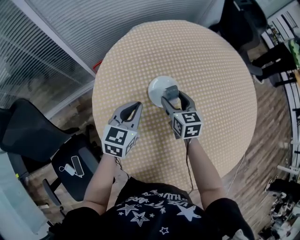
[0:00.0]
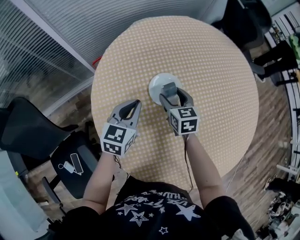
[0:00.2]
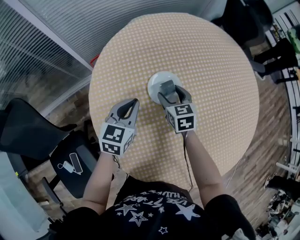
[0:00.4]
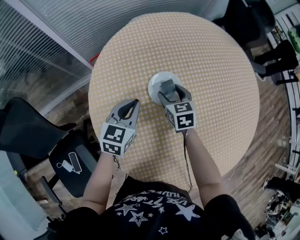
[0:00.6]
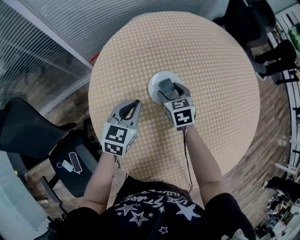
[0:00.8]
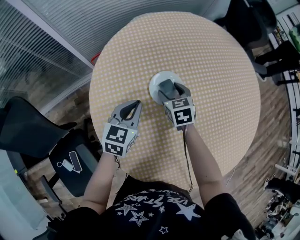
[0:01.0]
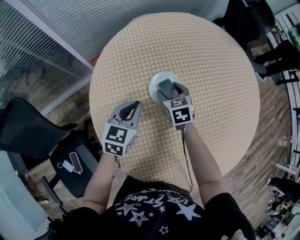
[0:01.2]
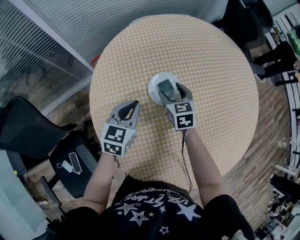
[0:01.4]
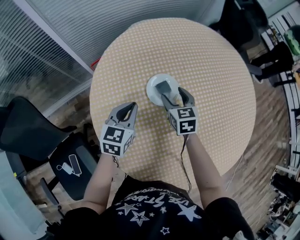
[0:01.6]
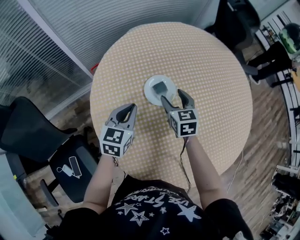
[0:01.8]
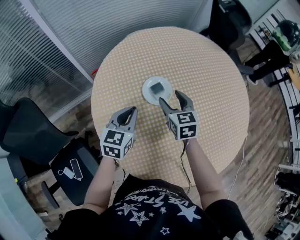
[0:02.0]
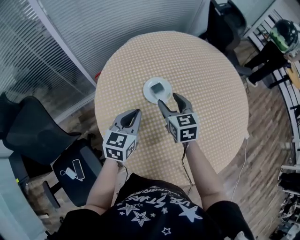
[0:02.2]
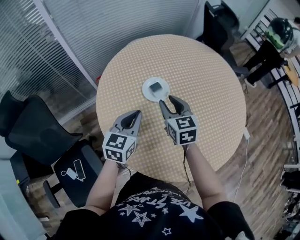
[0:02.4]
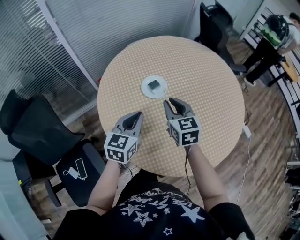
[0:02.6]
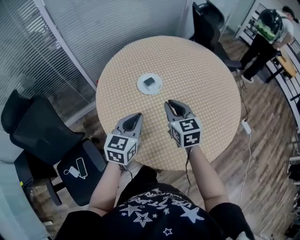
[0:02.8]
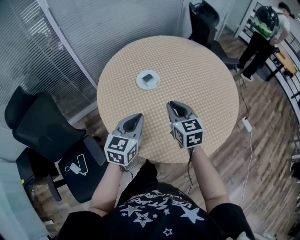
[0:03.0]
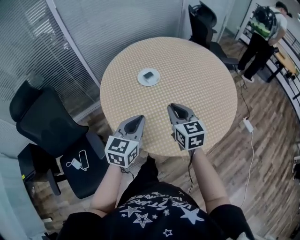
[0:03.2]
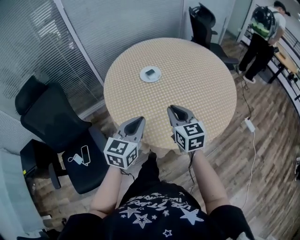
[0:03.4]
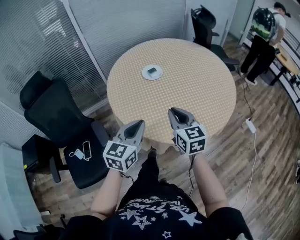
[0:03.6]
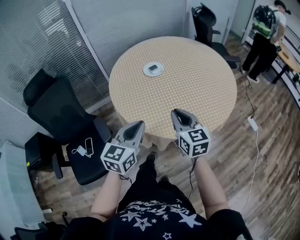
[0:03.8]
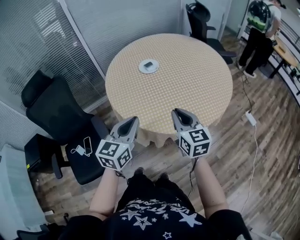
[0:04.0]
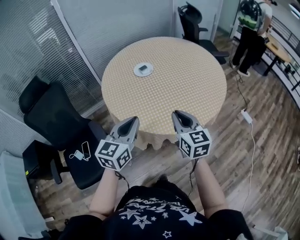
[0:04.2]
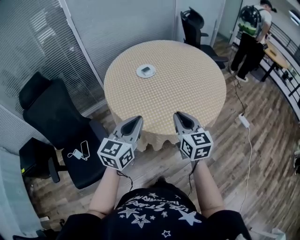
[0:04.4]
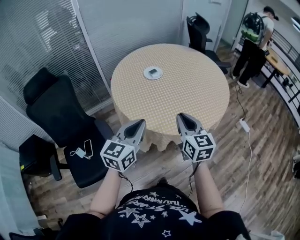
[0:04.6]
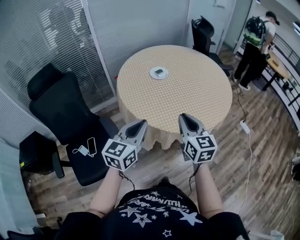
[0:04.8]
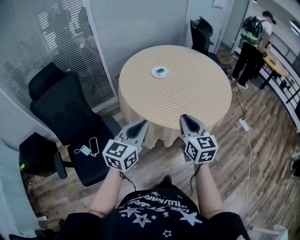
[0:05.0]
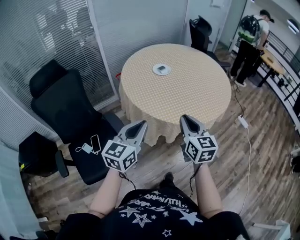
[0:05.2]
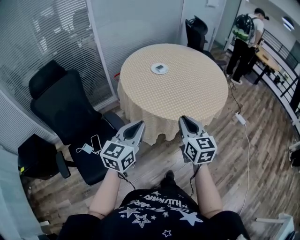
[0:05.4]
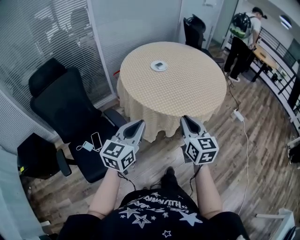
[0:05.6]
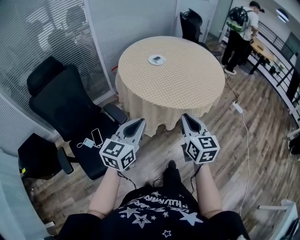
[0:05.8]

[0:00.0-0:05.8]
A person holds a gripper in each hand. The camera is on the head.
0:01.4 to 0:02.8: The two grippers go about 25 cm backward and upward. The right gripper closes up.
0:02.8 to 0:04.4: Both grippers travel together backward, roughly 25 cm.
0:04.4 to 0:05.8: The two grippers go some 25 cm backward and to the left.

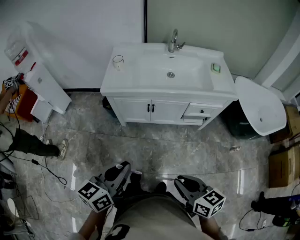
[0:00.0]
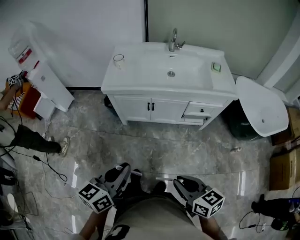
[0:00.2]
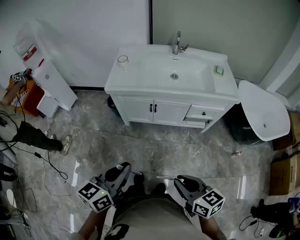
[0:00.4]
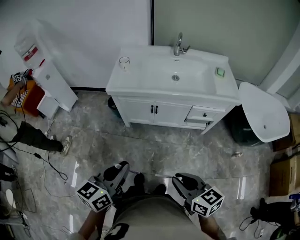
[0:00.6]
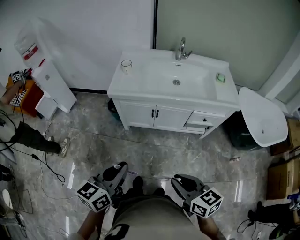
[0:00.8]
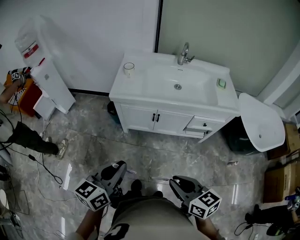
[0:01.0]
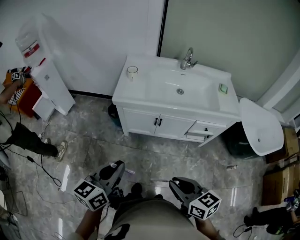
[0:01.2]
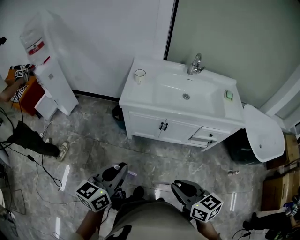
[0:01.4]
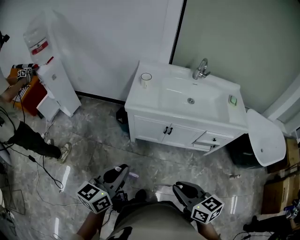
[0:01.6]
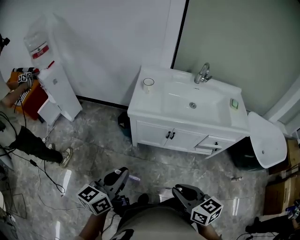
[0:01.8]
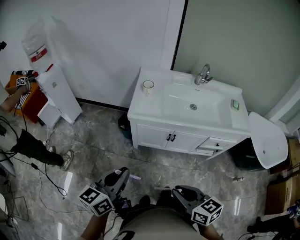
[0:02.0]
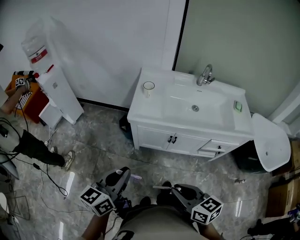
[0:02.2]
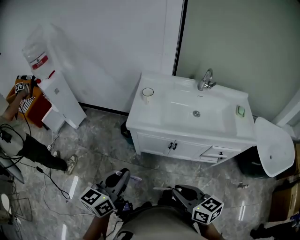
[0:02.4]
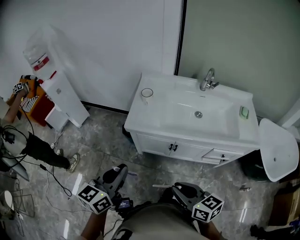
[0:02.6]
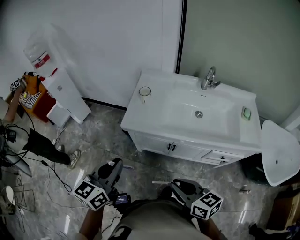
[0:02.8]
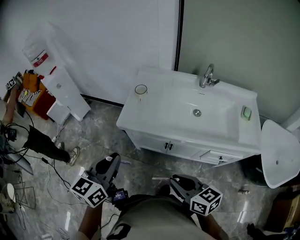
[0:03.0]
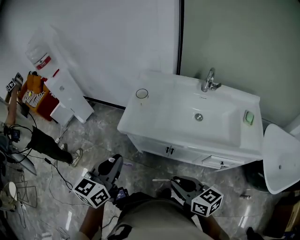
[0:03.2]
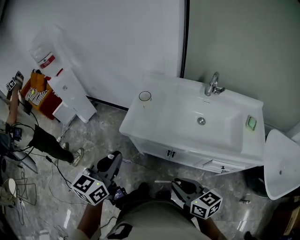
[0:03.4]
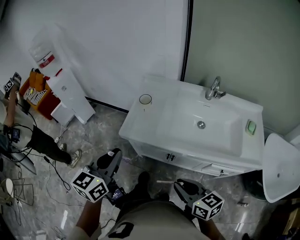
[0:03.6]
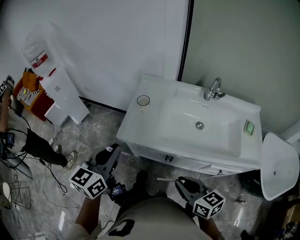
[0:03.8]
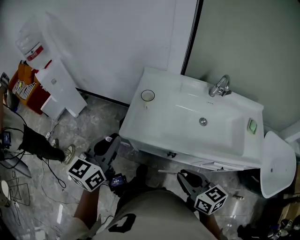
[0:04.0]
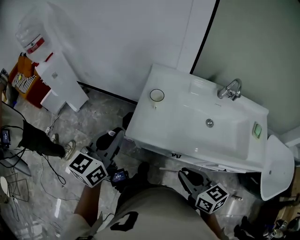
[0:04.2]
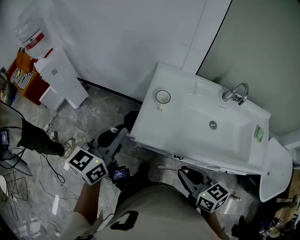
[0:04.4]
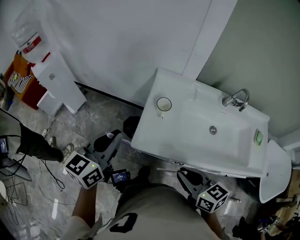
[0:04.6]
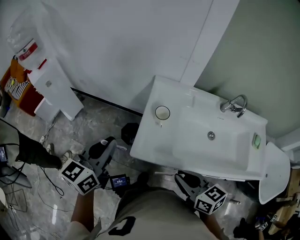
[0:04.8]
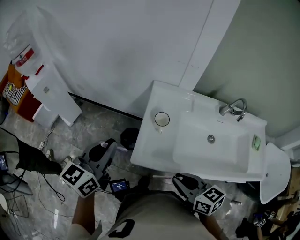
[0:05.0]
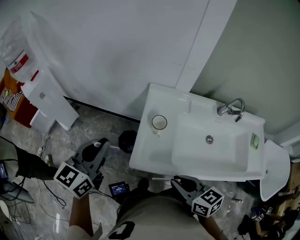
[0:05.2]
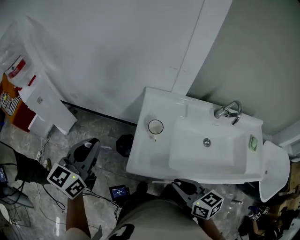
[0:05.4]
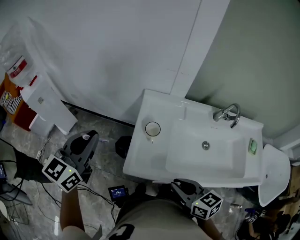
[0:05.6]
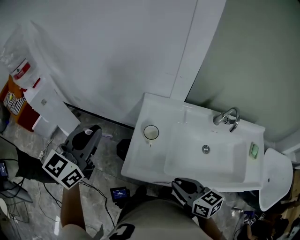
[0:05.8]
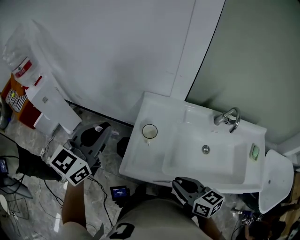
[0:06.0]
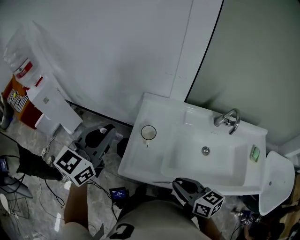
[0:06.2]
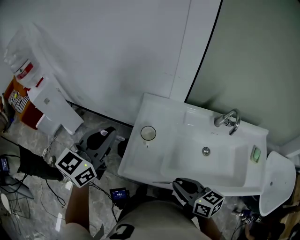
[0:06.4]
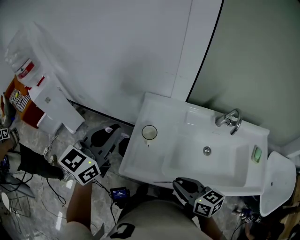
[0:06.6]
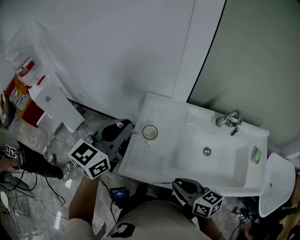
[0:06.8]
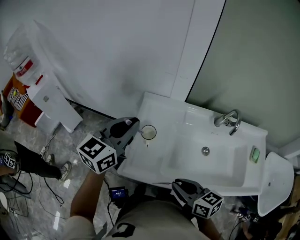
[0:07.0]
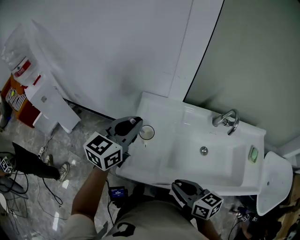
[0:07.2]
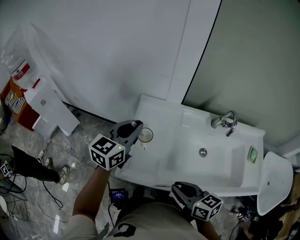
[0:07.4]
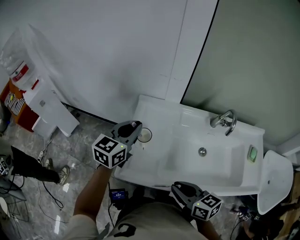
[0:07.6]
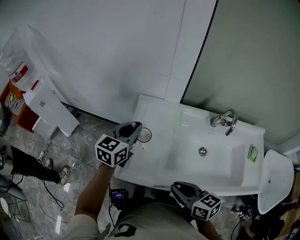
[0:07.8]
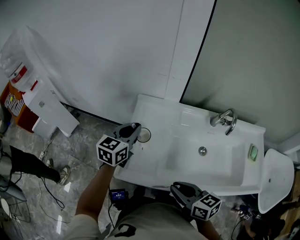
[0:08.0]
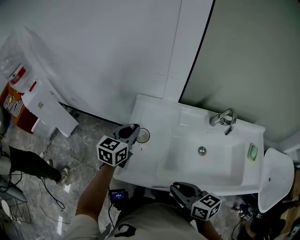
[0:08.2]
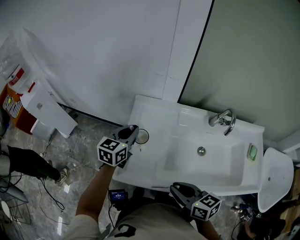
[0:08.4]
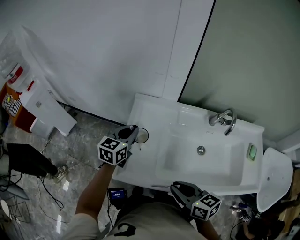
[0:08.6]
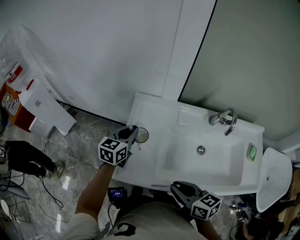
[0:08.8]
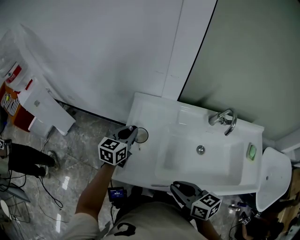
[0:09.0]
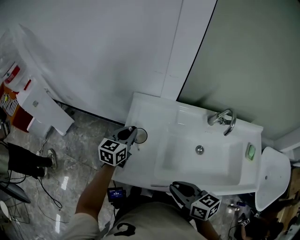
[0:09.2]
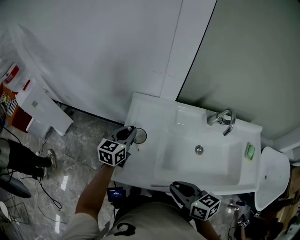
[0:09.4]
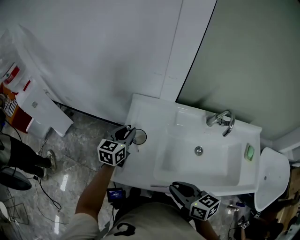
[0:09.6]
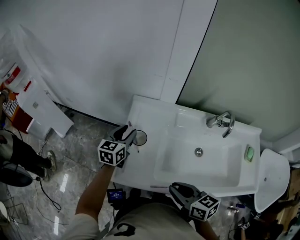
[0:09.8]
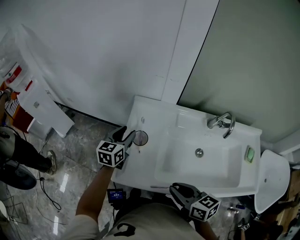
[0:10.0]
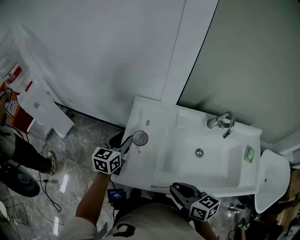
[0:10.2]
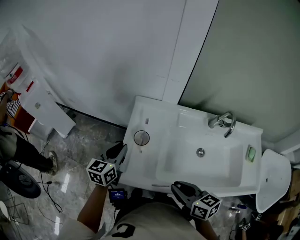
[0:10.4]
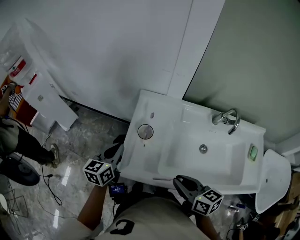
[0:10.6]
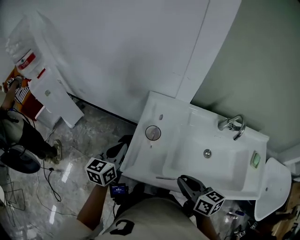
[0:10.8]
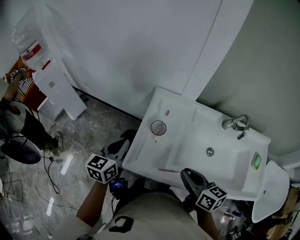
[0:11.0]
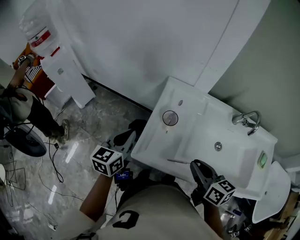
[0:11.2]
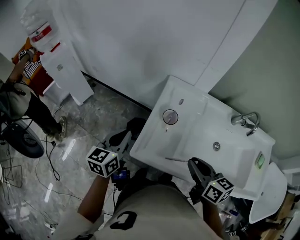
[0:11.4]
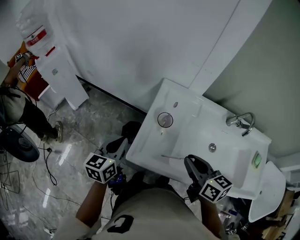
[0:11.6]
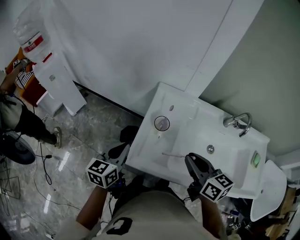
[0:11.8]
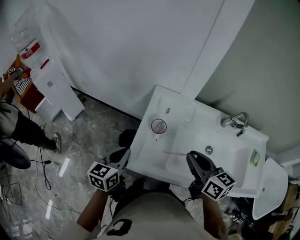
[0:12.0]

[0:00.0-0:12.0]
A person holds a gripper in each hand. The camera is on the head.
0:00.0 to 0:01.6: The grippers both shift to the left and forward by approximately 15 cm.
0:01.6 to 0:03.0: The grippers both shift forward and to the right by about 20 cm.
0:03.0 to 0:04.4: The grippers both shift forward by roughly 20 cm.
0:04.4 to 0:06.0: The right gripper heads forward, covering about 10 cm; the left gripper travels forward and upward by approximately 15 cm.
0:06.0 to 0:07.6: The left gripper goes roughly 15 cm to the right, downward and forward.
0:07.6 to 0:09.0: The left gripper travels downward by about 10 cm.
0:09.0 to 0:10.4: The left gripper goes roughly 10 cm backward and to the left, and opens and closes again.
0:10.4 to 0:12.0: The left gripper goes approximately 10 cm backward and to the left. Meanwhile the right gripper travels forward and upward by approximately 10 cm.

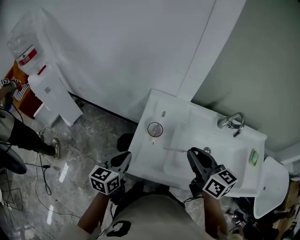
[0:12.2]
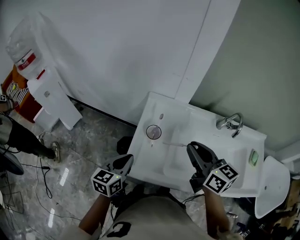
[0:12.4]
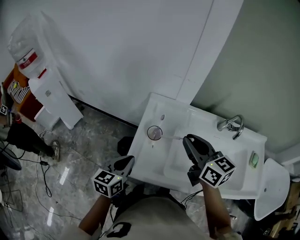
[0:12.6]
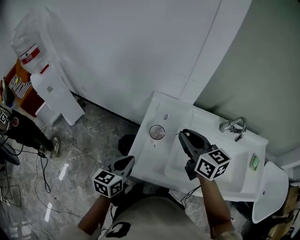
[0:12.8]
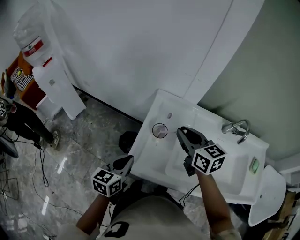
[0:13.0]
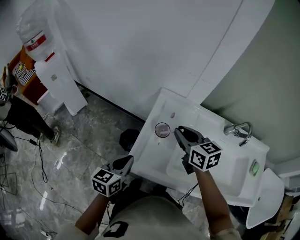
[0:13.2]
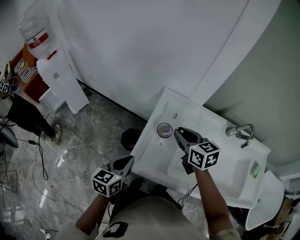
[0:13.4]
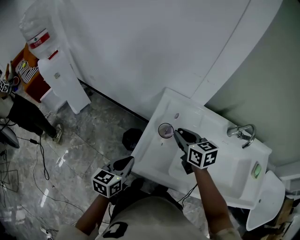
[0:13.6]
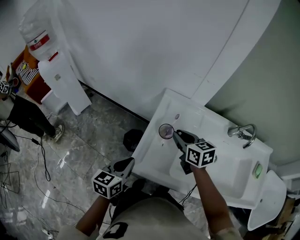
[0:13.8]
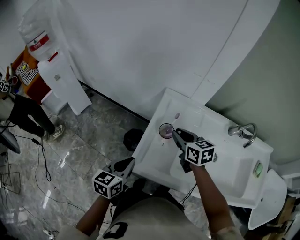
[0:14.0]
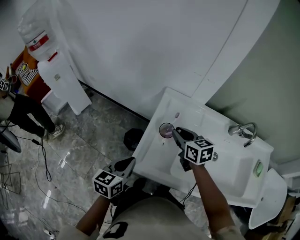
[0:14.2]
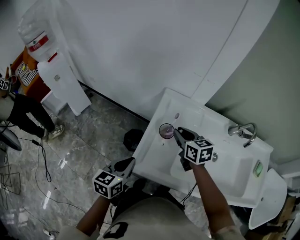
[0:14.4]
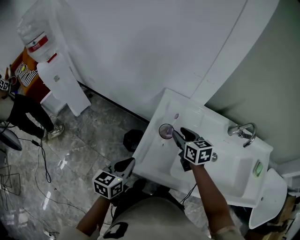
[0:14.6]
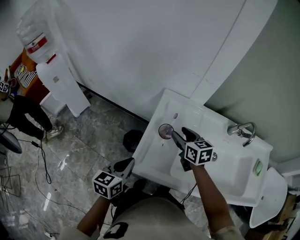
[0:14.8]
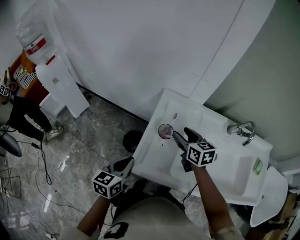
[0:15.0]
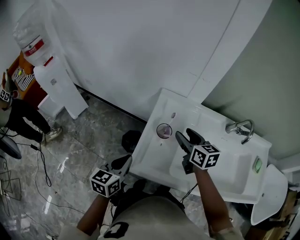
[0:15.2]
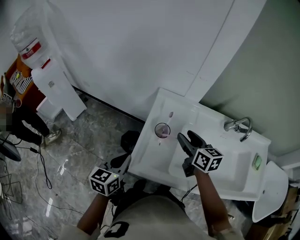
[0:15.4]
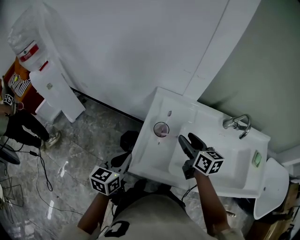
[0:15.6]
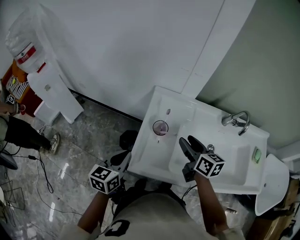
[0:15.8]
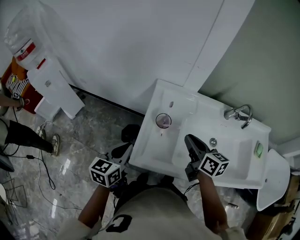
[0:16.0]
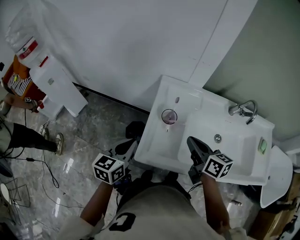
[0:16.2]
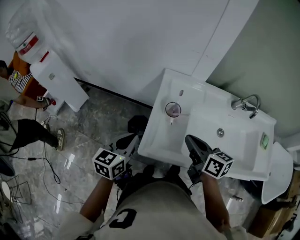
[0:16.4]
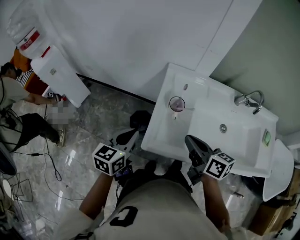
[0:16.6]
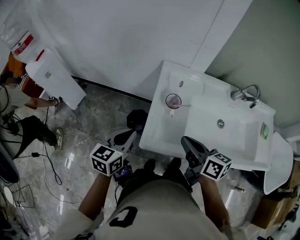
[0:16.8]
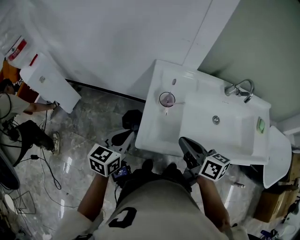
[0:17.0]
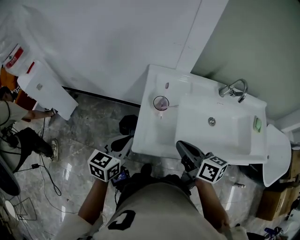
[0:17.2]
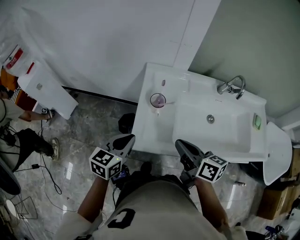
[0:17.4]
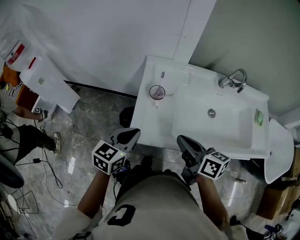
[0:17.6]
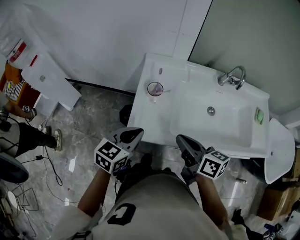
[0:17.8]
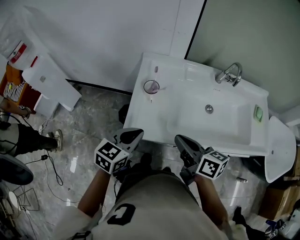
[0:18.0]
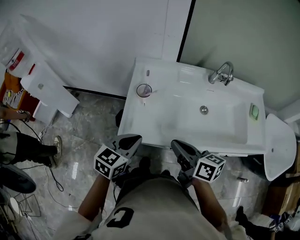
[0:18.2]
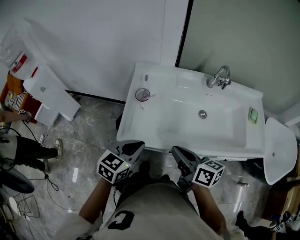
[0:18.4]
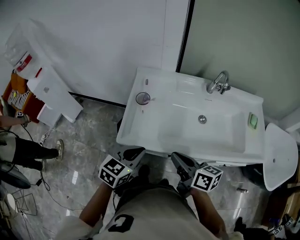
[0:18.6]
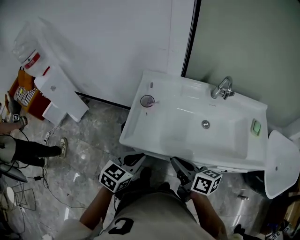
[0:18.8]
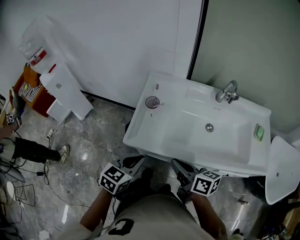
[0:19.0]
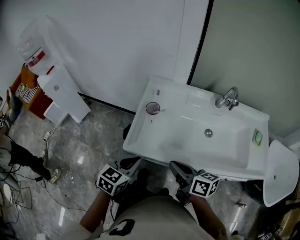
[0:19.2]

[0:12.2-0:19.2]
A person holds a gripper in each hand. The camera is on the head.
0:12.2 to 0:13.6: The right gripper moves forward, downward and to the left, some 15 cm.
0:13.6 to 0:15.0: The right gripper opens its fingers.
0:15.0 to 0:16.4: The right gripper is displaced backward by about 15 cm, changes its angle by roughly 20 degrees, and closes up.
0:16.4 to 0:17.8: The right gripper is displaced backward by approximately 10 cm. Meanwhile the left gripper shifts about 10 cm to the right and backward, and rotates some 20 degrees.
0:17.8 to 0:19.2: The grippers both shift backward by about 5 cm.
